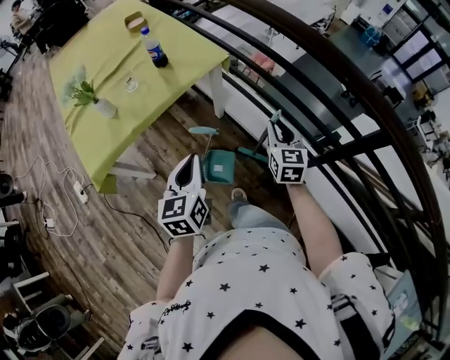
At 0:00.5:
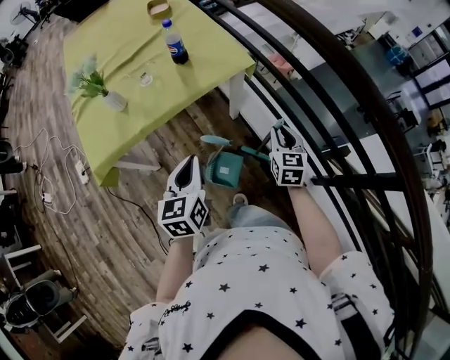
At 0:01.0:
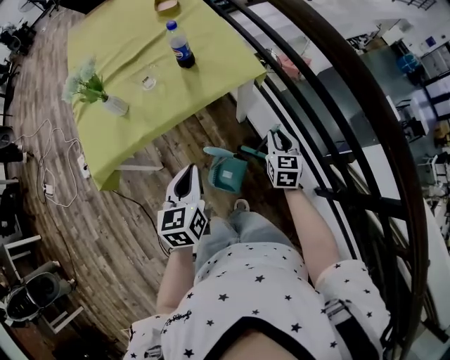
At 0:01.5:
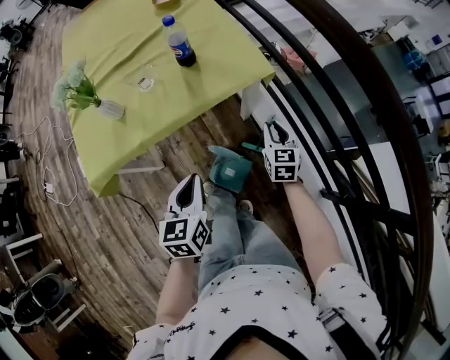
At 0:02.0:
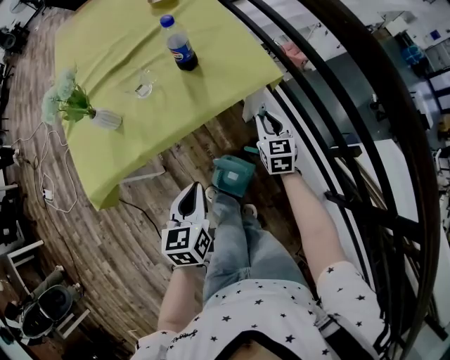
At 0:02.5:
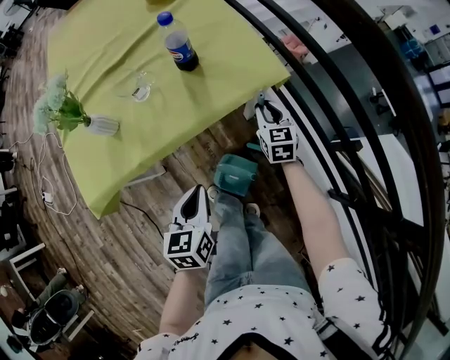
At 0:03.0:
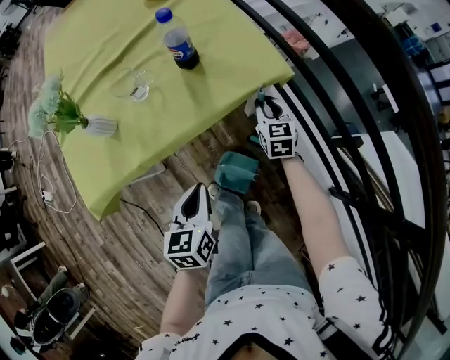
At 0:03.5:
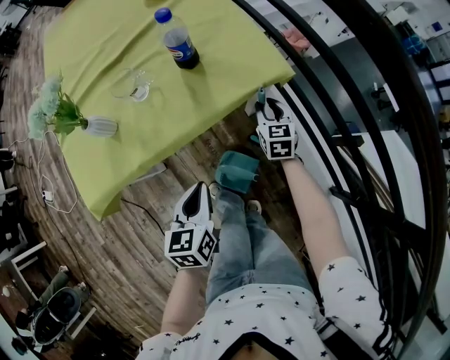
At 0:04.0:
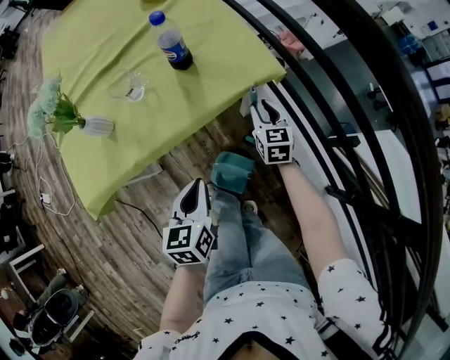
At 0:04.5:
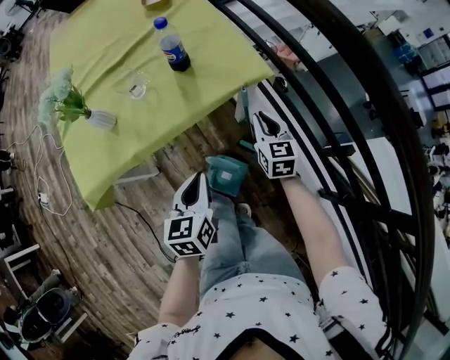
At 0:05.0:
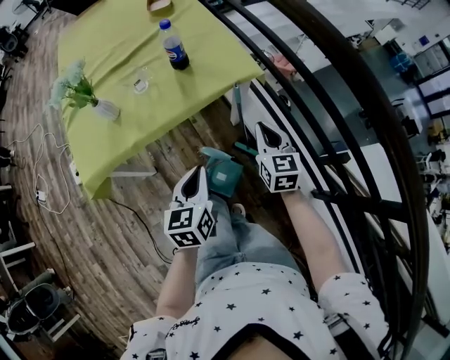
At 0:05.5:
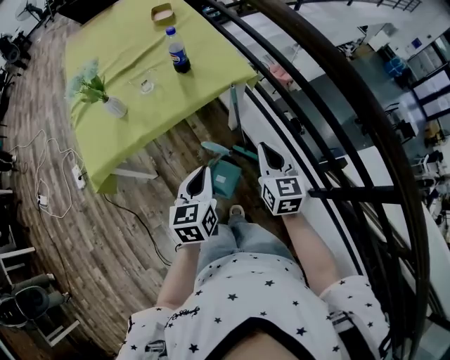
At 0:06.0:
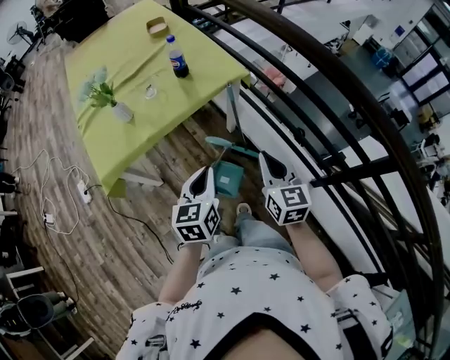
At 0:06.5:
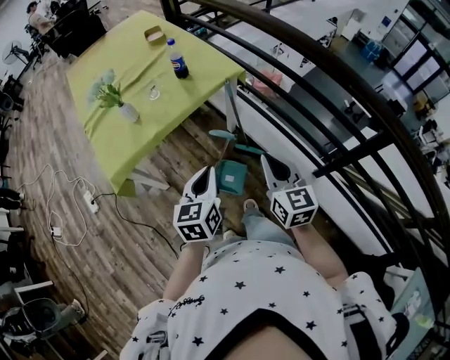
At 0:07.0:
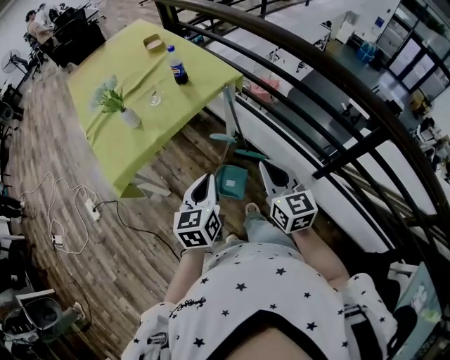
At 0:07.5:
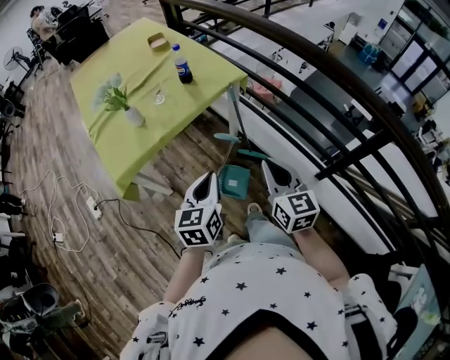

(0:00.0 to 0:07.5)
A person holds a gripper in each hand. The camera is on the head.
0:00.0 - 0:02.0: The right gripper goes approximately 35 cm forward, downward and to the left, and turns by some 20 degrees. Meanwhile the left gripper heads forward, downward and to the left, covering some 20 cm.
0:04.0 - 0:05.5: The left gripper moves backward, upward and to the right, about 15 cm. The right gripper shifts some 30 cm backward and upward, and closes up.
0:05.5 - 0:07.5: The left gripper shifts approximately 15 cm backward, upward and to the left. Meanwhile the right gripper travels backward and upward by roughly 20 cm.

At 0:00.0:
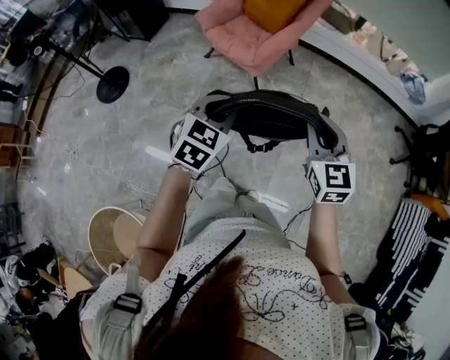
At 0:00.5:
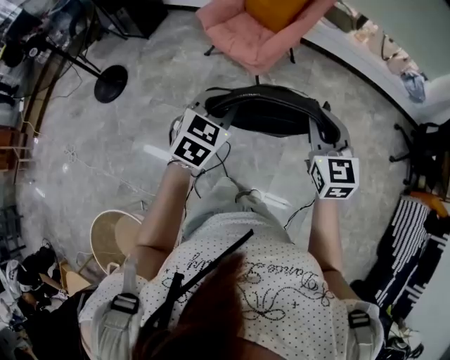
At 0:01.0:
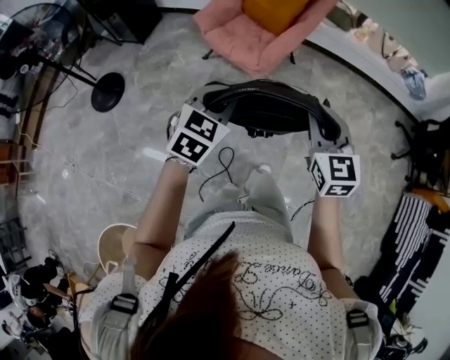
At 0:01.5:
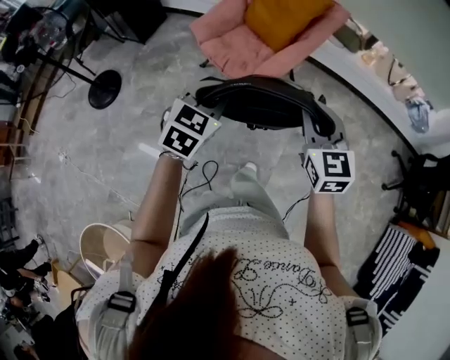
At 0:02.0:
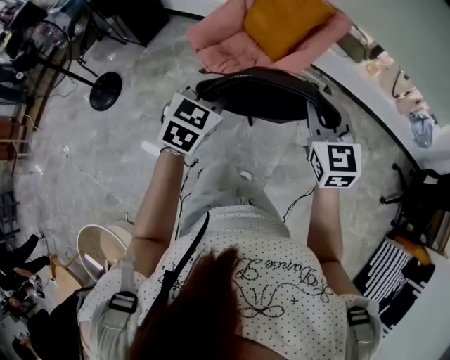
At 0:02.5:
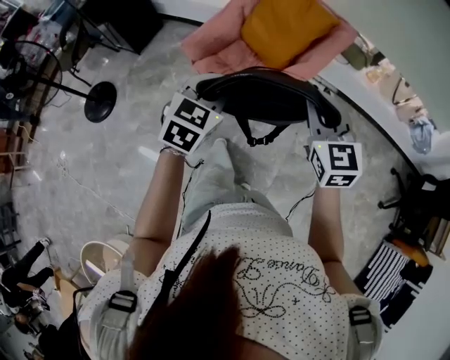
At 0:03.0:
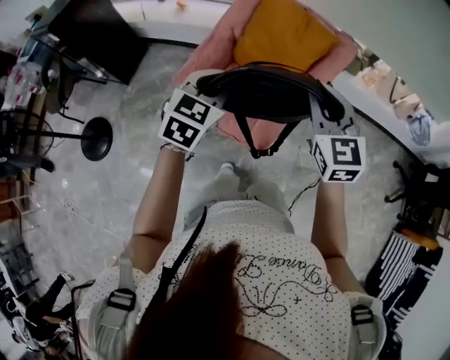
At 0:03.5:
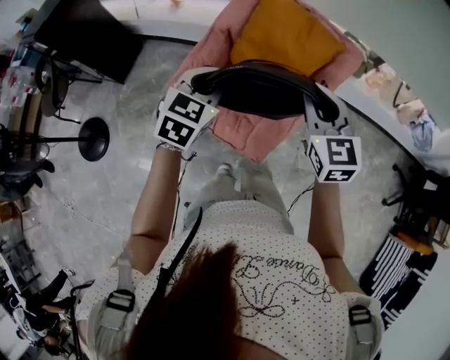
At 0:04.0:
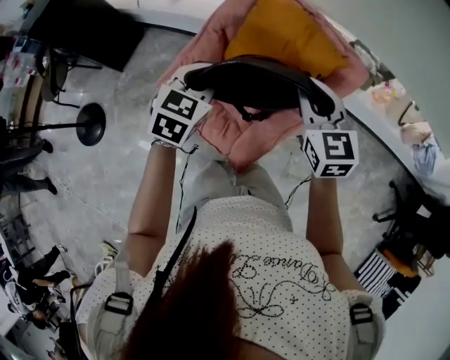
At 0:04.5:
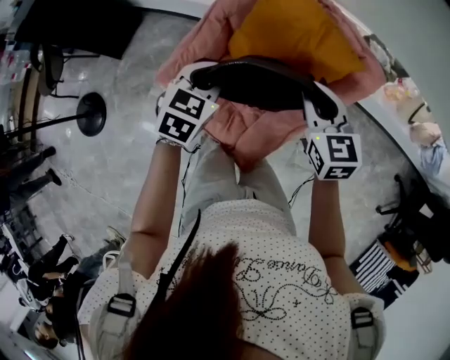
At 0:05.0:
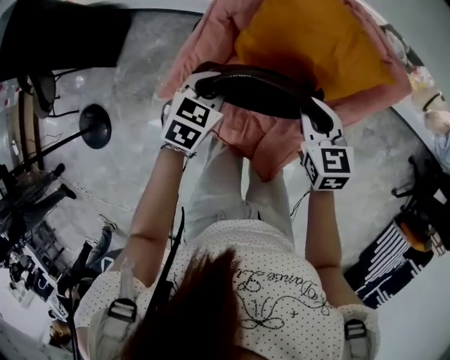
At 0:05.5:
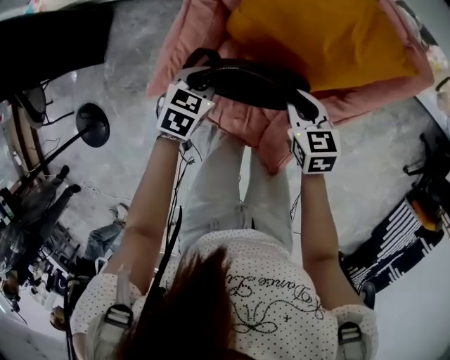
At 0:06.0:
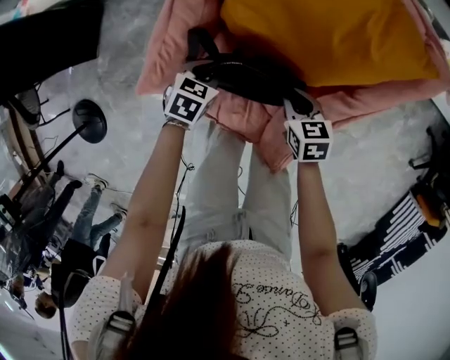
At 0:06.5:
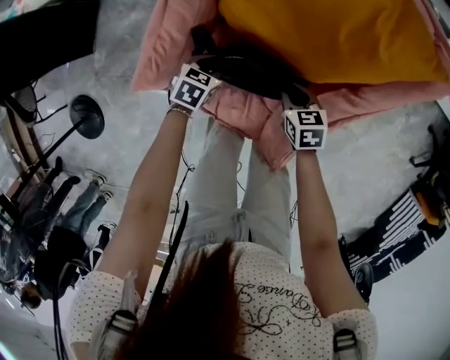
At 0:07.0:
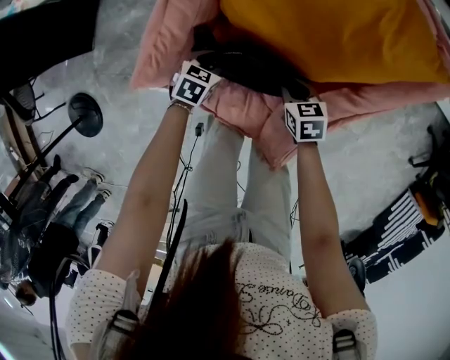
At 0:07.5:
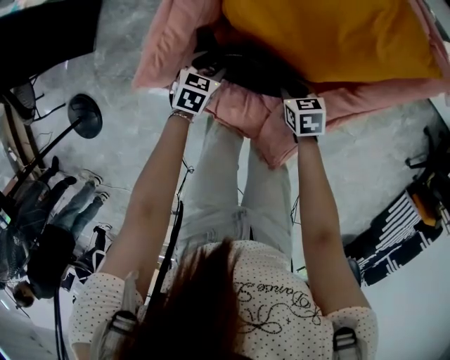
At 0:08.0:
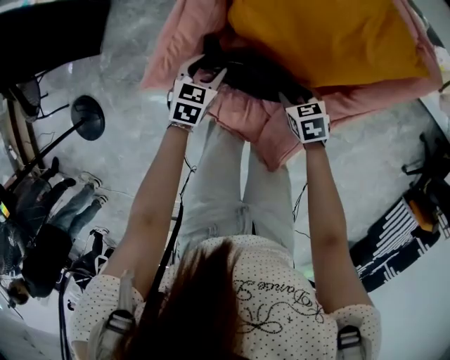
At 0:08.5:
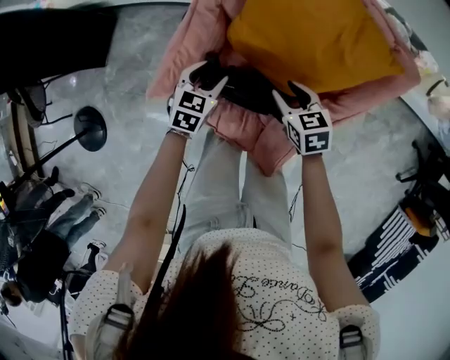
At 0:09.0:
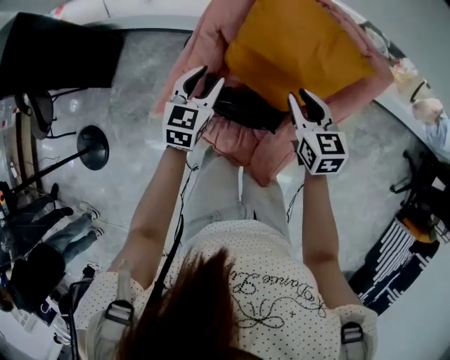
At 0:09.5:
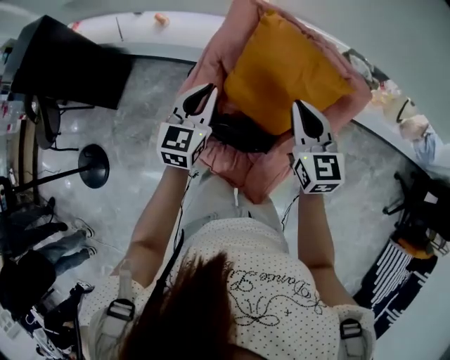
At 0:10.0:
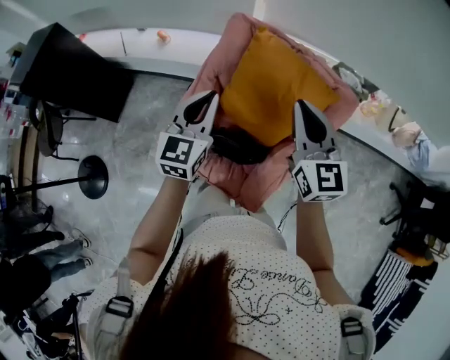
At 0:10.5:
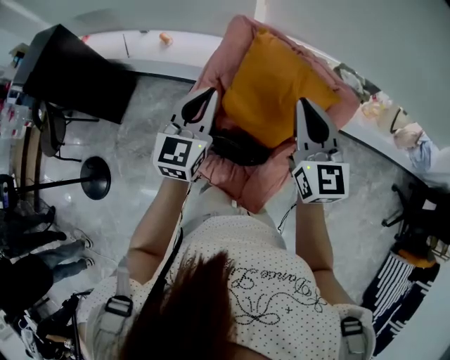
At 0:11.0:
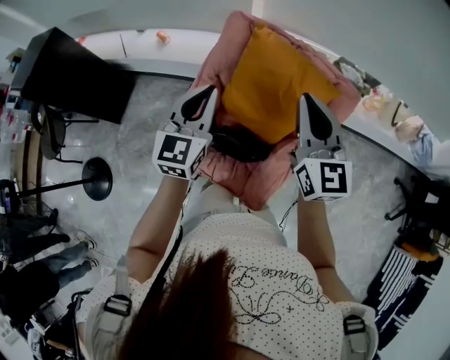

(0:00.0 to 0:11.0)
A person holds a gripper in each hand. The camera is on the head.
0:00.0 - 0:02.0: Both grippers travel together forward, roughly 35 cm.
0:02.0 - 0:03.5: Both grippers move forward, approximately 40 cm.
0:03.5 - 0:05.5: Both grippers travel together downward and forward, some 40 cm. The right gripper rotates roughly 40 degrees, while the left gripper rotates some 30 degrees.
0:05.5 - 0:07.5: Both grippers travel together downward, approximately 15 cm. The left gripper opens up.
0:07.5 - 0:09.0: Both grippers travel together upward, some 30 cm. The left gripper changes its angle by approximately 30 degrees; the right gripper rotates about 30 degrees, and opens, then closes once more.
0:09.0 - 0:11.0: Both grippers move upward, roughly 25 cm. The right gripper tilts its fingers roughly 30 degrees upward, and closes; the left gripper swivels approximately 20 degrees, and closes up.

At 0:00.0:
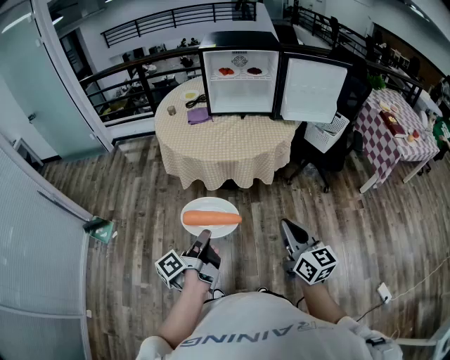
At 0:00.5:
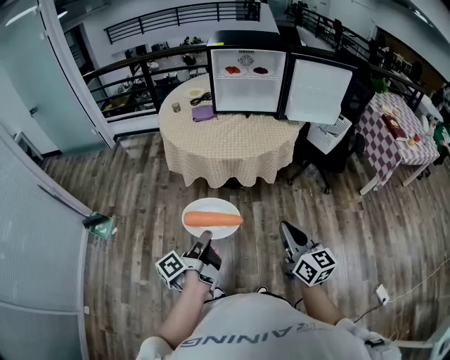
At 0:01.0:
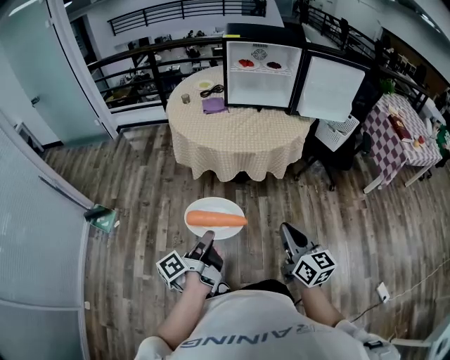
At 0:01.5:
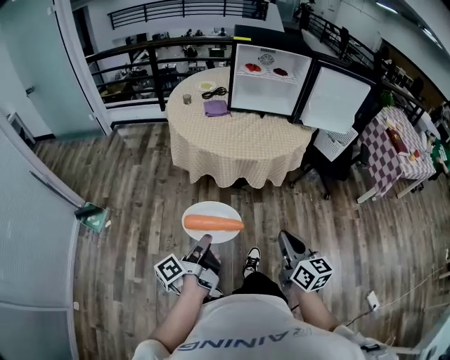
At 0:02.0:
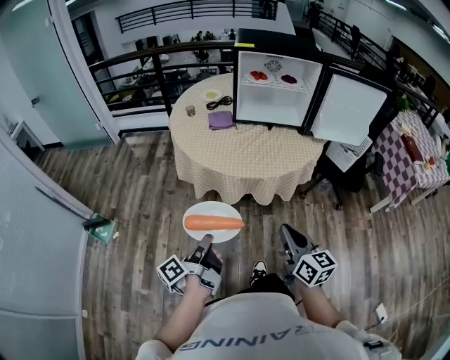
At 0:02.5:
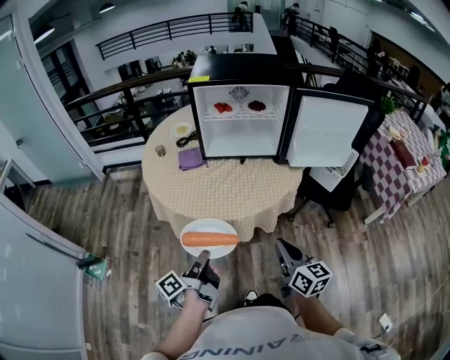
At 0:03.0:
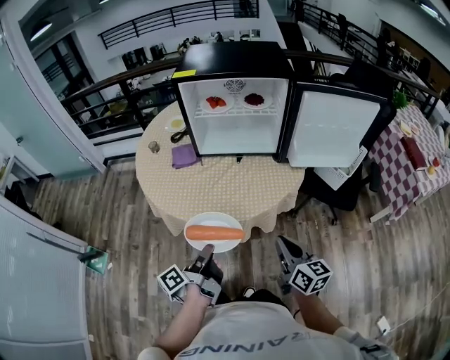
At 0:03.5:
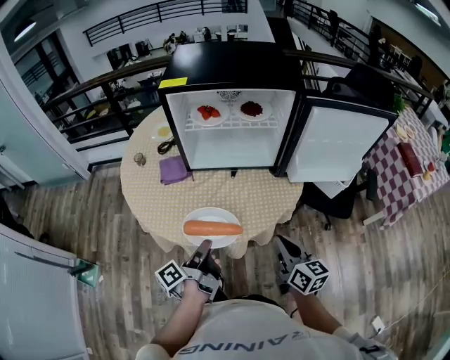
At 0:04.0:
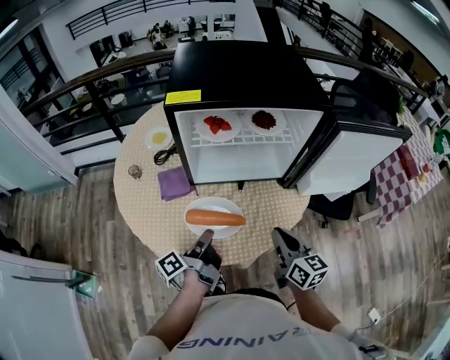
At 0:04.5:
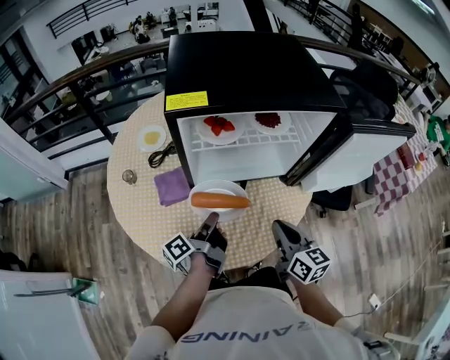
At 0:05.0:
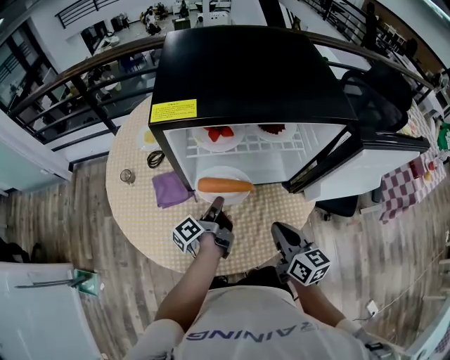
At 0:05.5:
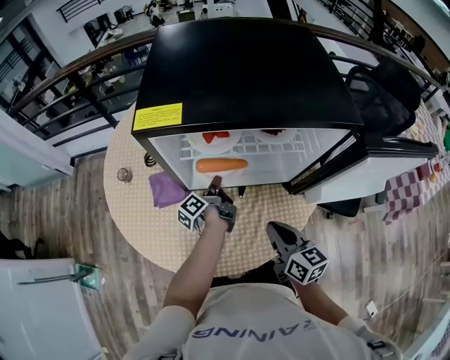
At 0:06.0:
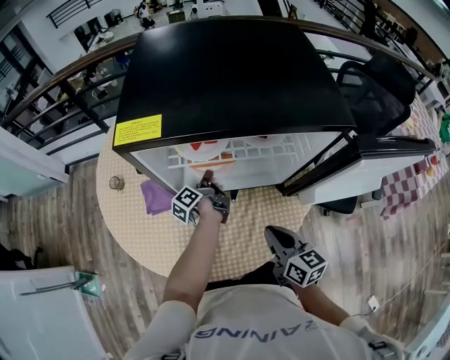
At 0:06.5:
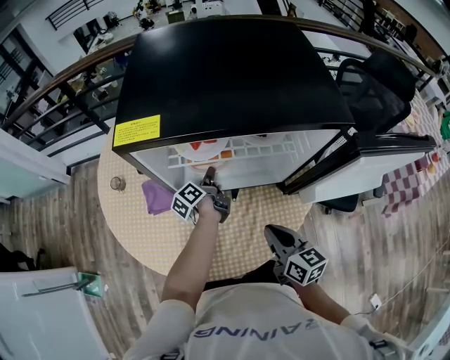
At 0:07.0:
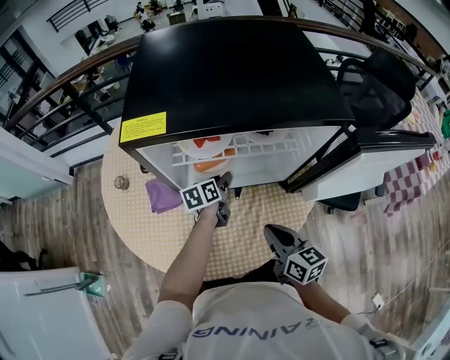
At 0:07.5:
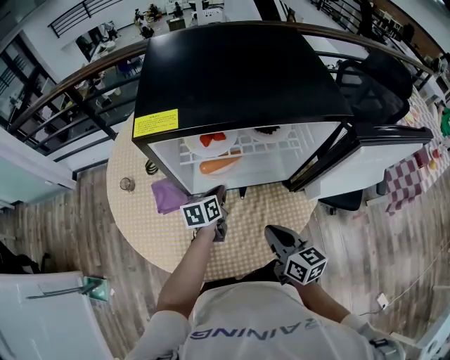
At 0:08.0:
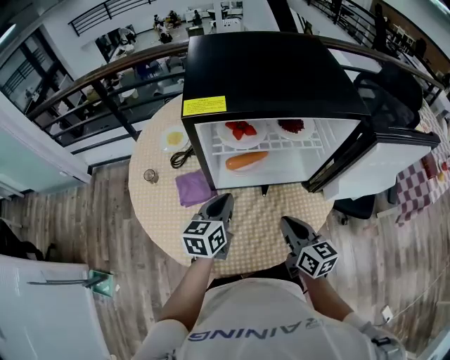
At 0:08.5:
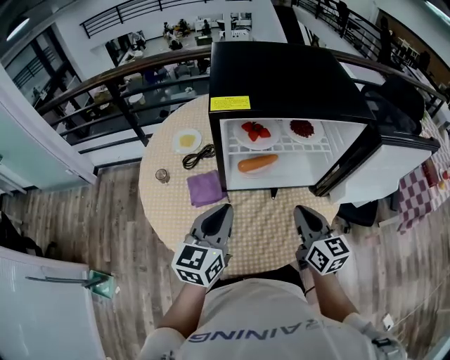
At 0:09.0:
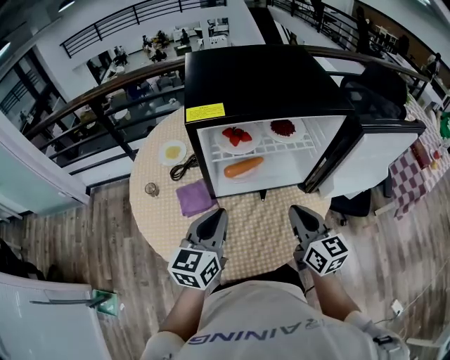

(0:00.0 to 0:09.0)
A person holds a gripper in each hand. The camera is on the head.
0:00.0 - 0:02.0: The right gripper changes place by roughly 15 cm.
0:02.0 - 0:04.5: The right gripper ends up roughly 40 cm from where it was.
0:04.5 - 0:07.0: The right gripper changes place by about 5 cm.
0:07.0 - 0:09.0: The right gripper heads upward, covering about 10 cm, and changes its angle by some 20 degrees.
